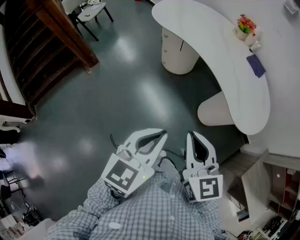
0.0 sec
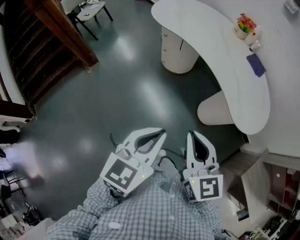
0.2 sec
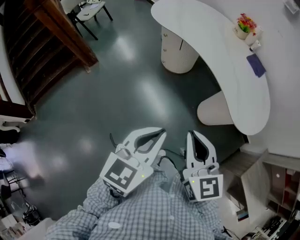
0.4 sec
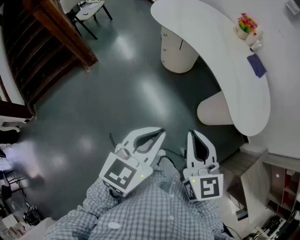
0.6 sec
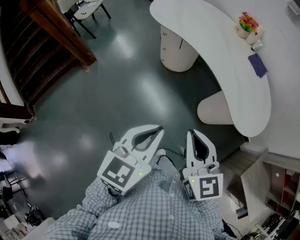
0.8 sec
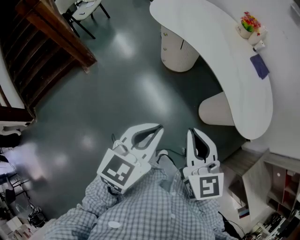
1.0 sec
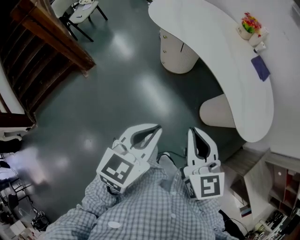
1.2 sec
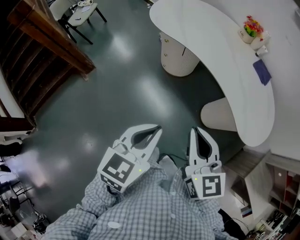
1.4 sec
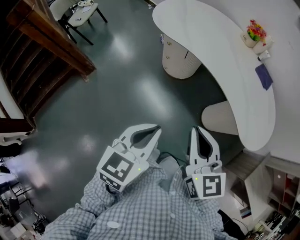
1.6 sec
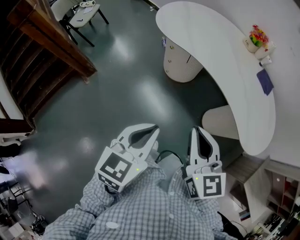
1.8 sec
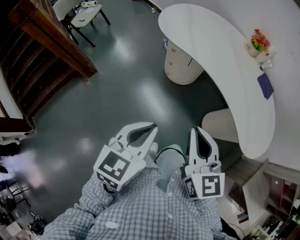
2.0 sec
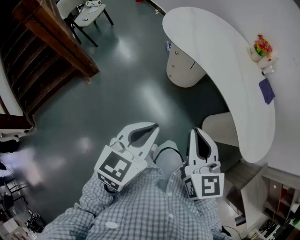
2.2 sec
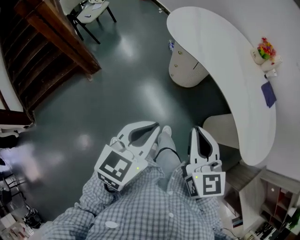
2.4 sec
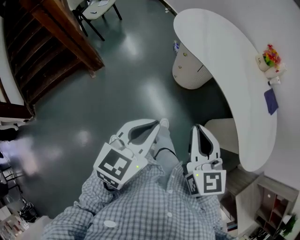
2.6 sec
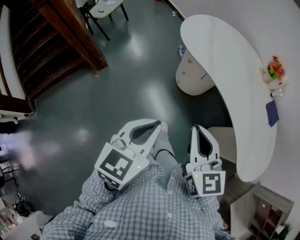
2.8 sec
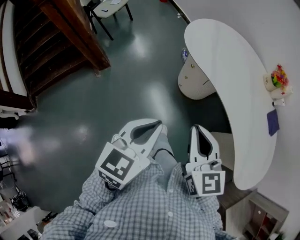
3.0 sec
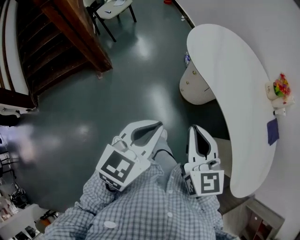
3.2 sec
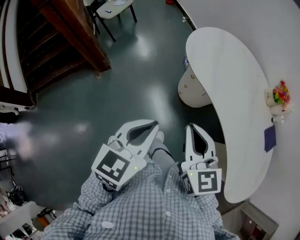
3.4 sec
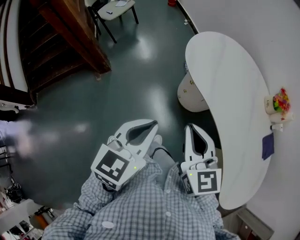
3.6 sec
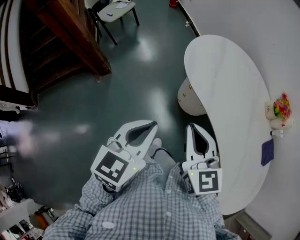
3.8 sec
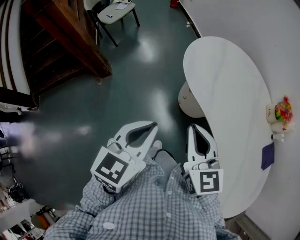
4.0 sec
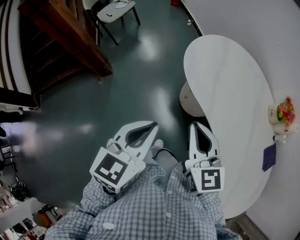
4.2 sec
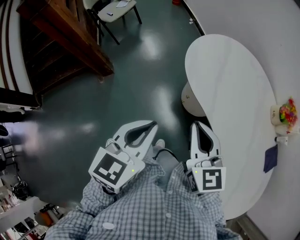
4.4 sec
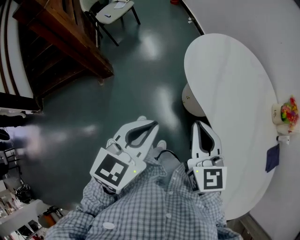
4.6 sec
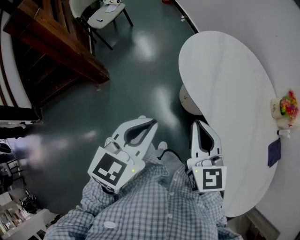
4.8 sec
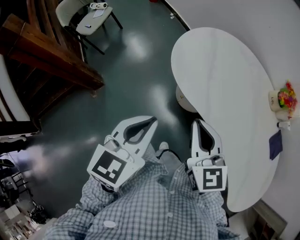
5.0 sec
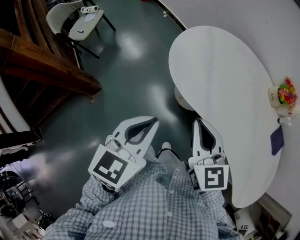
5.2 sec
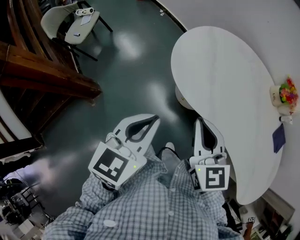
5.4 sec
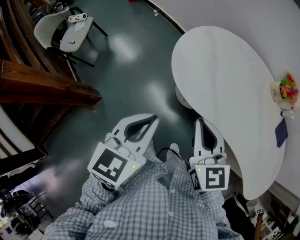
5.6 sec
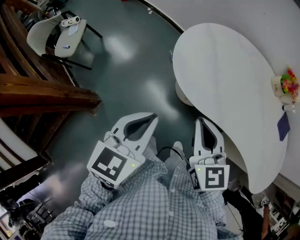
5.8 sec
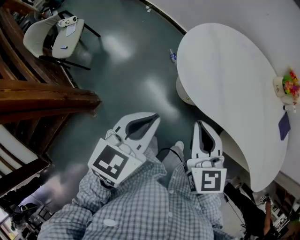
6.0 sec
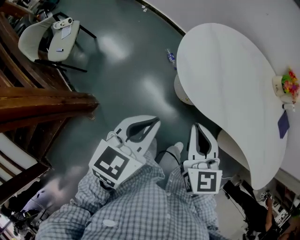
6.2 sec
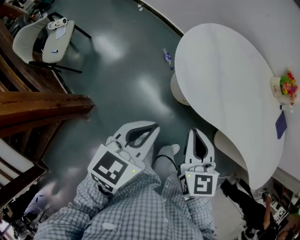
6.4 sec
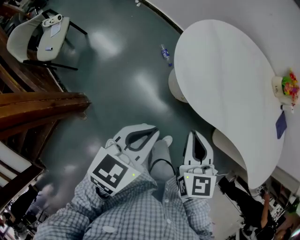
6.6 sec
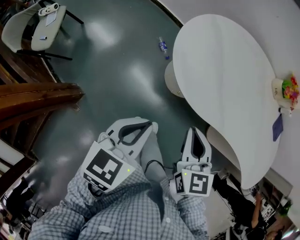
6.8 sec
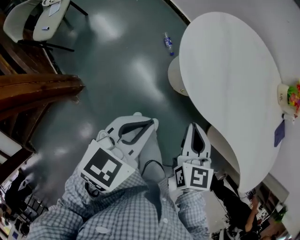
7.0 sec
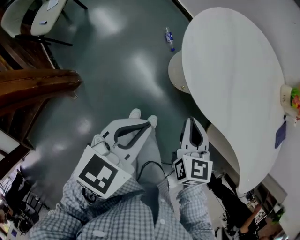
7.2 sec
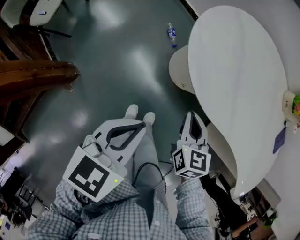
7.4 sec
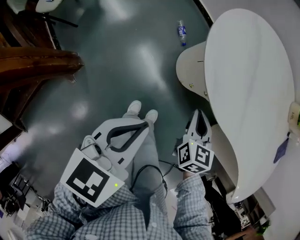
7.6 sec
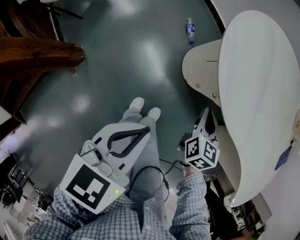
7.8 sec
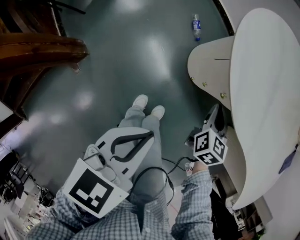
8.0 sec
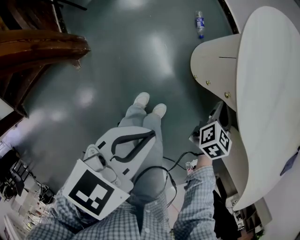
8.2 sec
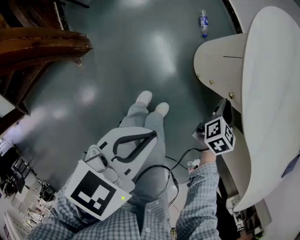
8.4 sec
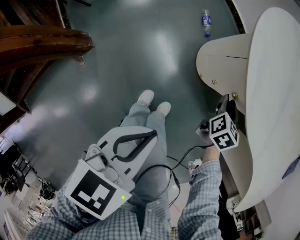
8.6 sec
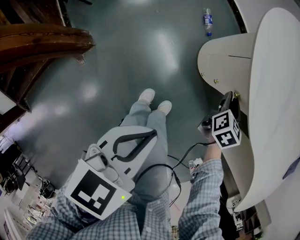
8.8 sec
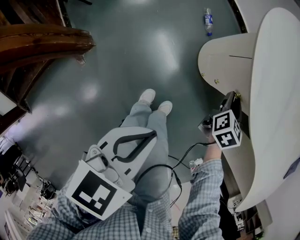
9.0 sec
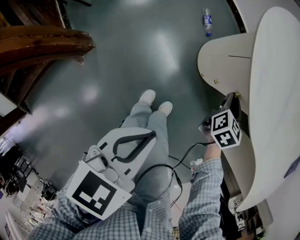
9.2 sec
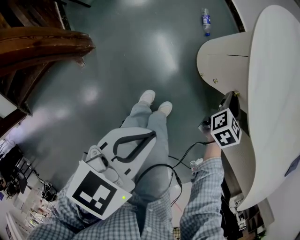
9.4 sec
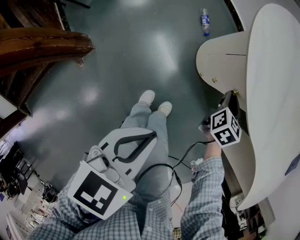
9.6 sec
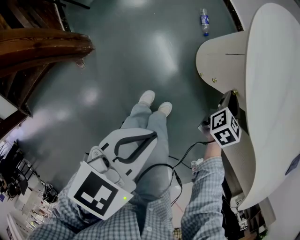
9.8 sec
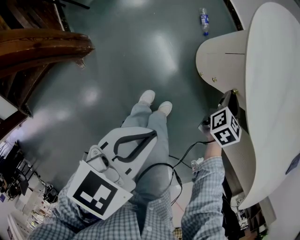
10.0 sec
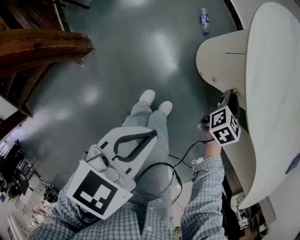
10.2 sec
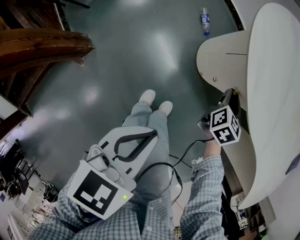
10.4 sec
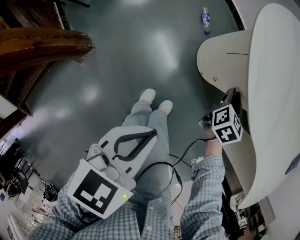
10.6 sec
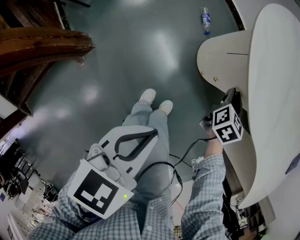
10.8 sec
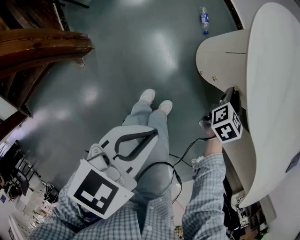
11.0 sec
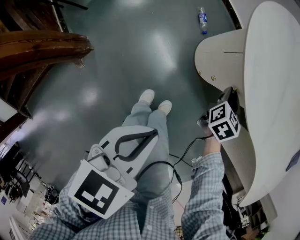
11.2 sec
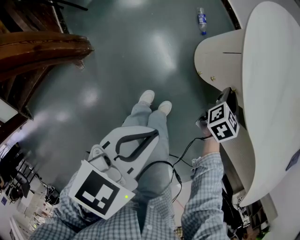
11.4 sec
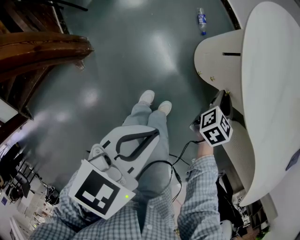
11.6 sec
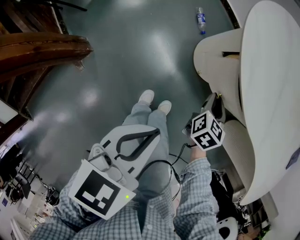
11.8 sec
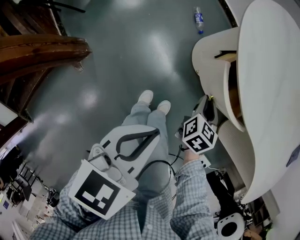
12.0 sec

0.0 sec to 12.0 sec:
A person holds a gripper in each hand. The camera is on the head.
0.0 sec to 1.6 sec: Both grippers travel together forward and to the left, some 15 cm.
1.6 sec to 3.0 sec: Both grippers travel together forward and to the left, approximately 15 cm.
3.0 sec to 4.4 sec: The grippers both shift forward by roughly 20 cm.
4.4 sec to 6.0 sec: The left gripper moves roughly 25 cm, and rotates about 30 degrees; the right gripper moves roughly 15 cm, and turns by about 30 degrees.
6.0 sec to 7.6 sec: The left gripper is displaced downward by about 15 cm, while the right gripper shifts some 25 cm downward, and turns by some 20 degrees.
7.6 sec to 9.0 sec: The right gripper goes about 15 cm downward and forward, and opens up, while the left gripper is displaced downward and backward by about 10 cm.
9.0 sec to 10.4 sec: The two grippers keep their place.
10.4 sec to 12.0 sec: The right gripper is displaced backward by roughly 10 cm.

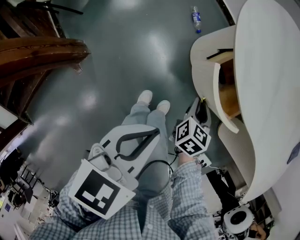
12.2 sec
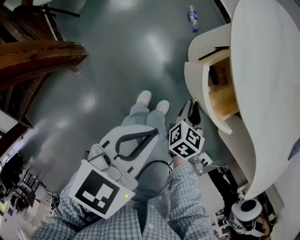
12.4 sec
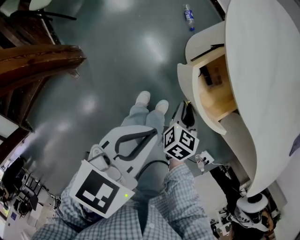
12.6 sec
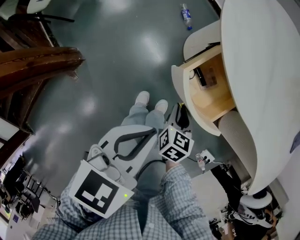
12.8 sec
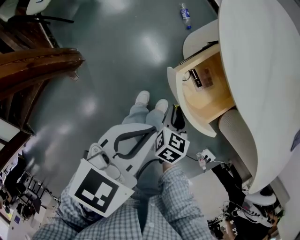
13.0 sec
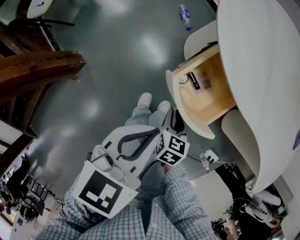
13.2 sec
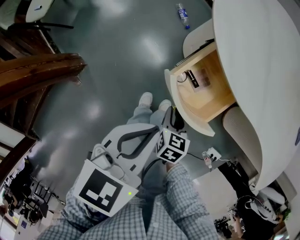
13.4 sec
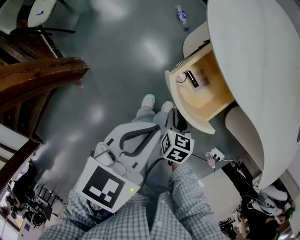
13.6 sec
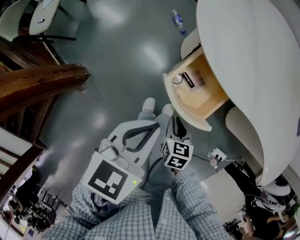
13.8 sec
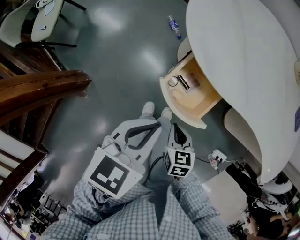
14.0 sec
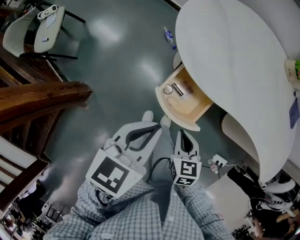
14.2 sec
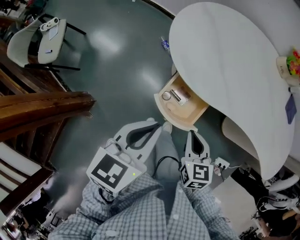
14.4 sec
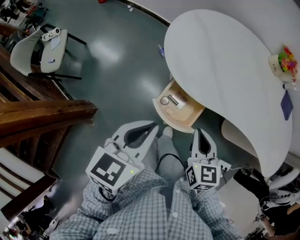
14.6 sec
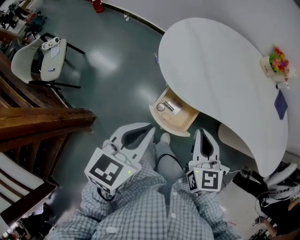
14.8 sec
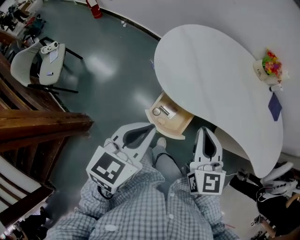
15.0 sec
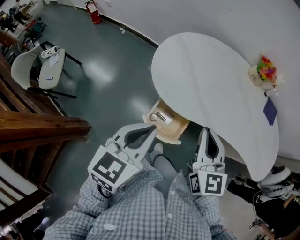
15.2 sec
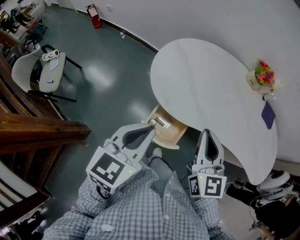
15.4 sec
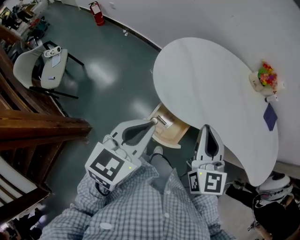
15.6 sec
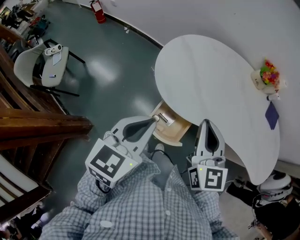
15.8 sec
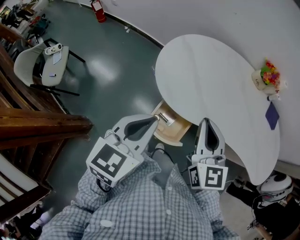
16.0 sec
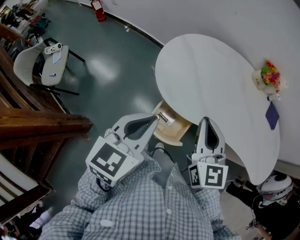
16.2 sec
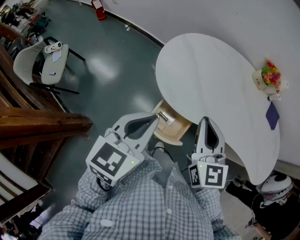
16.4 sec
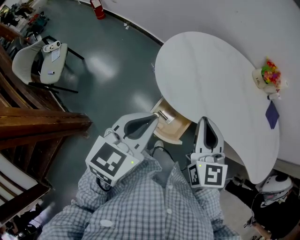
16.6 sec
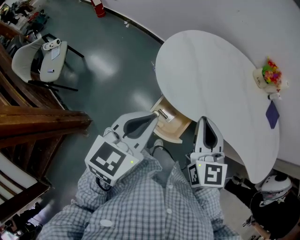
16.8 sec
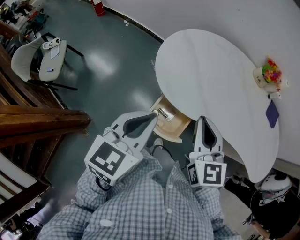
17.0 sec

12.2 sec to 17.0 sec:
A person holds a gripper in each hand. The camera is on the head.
12.2 sec to 13.8 sec: The right gripper moves backward, about 15 cm.
13.8 sec to 15.4 sec: The right gripper moves upward, approximately 40 cm, and tilts its fingers approximately 40 degrees upward. Meanwhile the left gripper moves upward, about 20 cm.
15.4 sec to 17.0 sec: The grippers stay close to where they were, moving slightly.

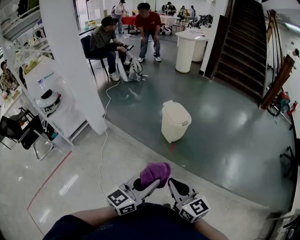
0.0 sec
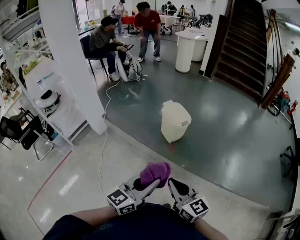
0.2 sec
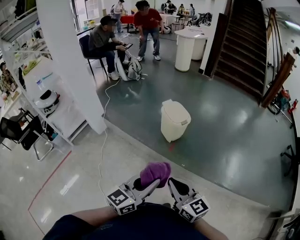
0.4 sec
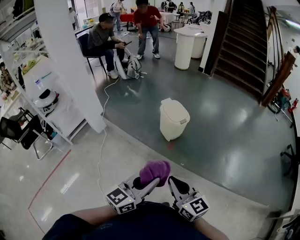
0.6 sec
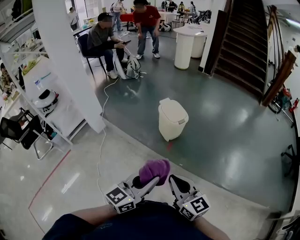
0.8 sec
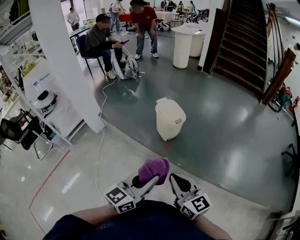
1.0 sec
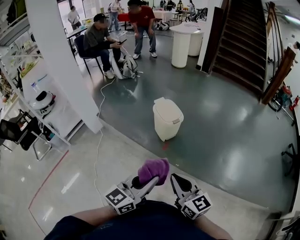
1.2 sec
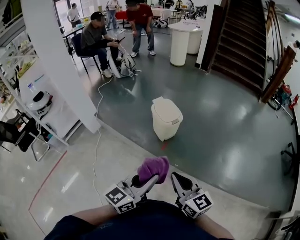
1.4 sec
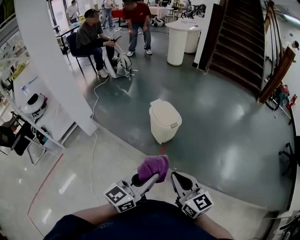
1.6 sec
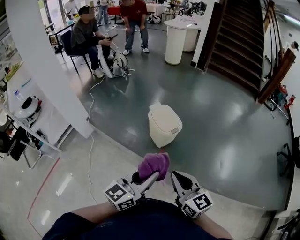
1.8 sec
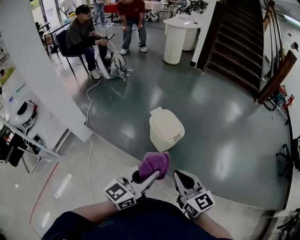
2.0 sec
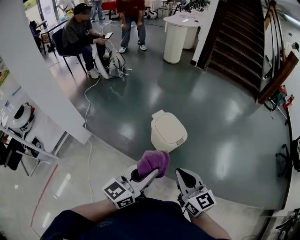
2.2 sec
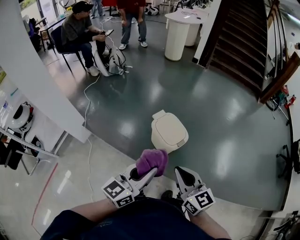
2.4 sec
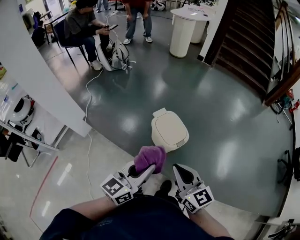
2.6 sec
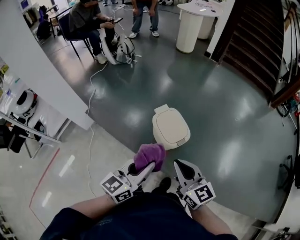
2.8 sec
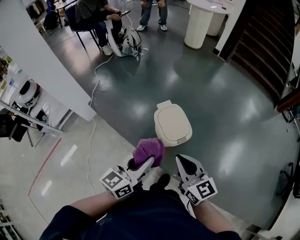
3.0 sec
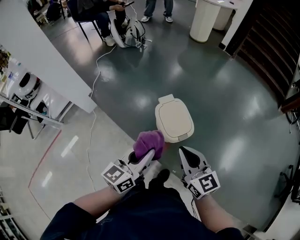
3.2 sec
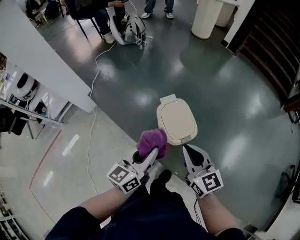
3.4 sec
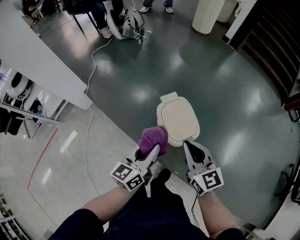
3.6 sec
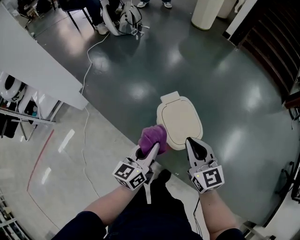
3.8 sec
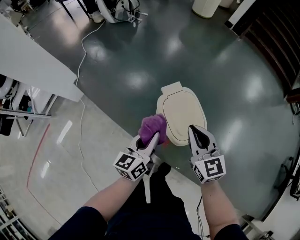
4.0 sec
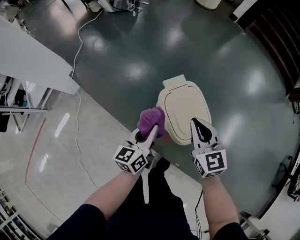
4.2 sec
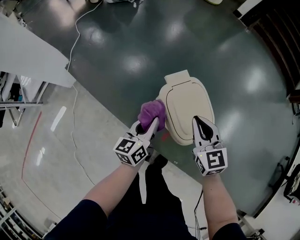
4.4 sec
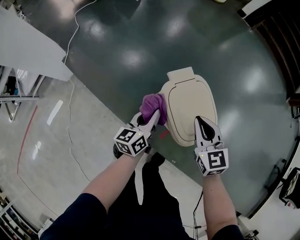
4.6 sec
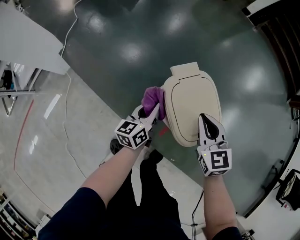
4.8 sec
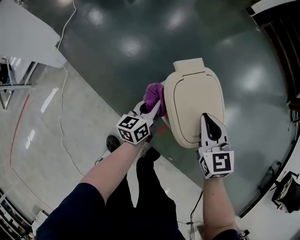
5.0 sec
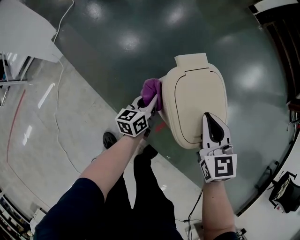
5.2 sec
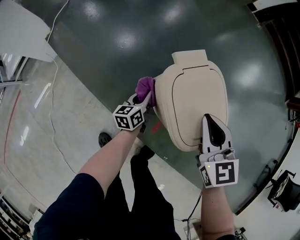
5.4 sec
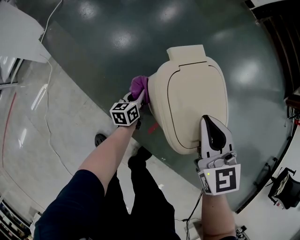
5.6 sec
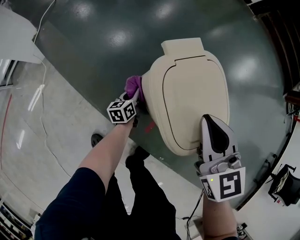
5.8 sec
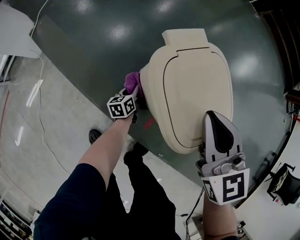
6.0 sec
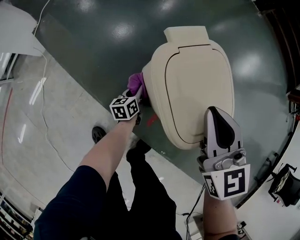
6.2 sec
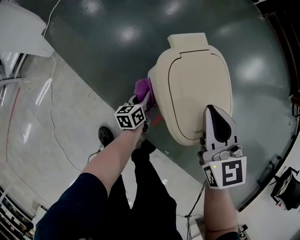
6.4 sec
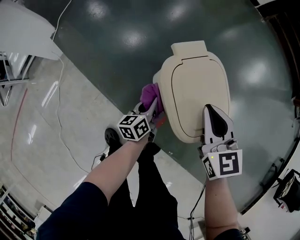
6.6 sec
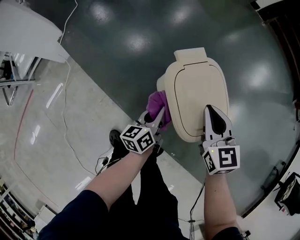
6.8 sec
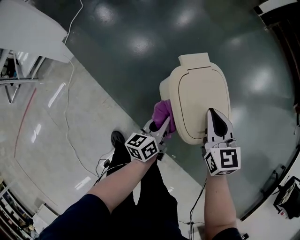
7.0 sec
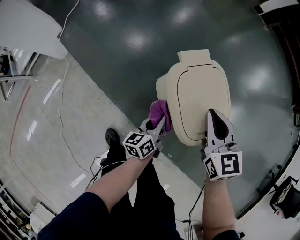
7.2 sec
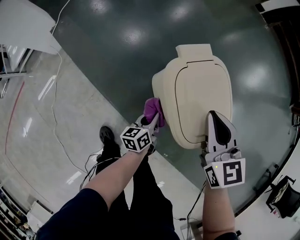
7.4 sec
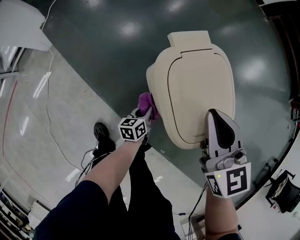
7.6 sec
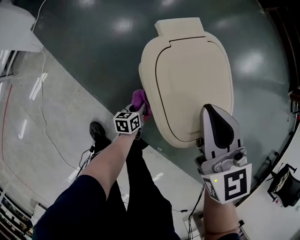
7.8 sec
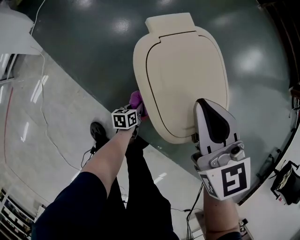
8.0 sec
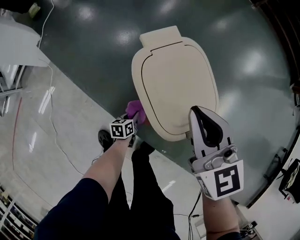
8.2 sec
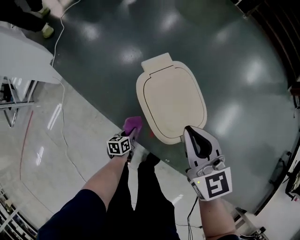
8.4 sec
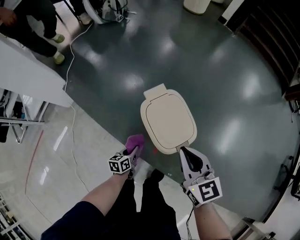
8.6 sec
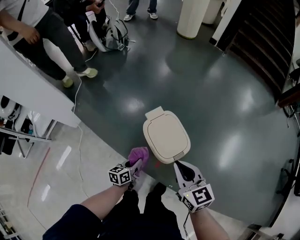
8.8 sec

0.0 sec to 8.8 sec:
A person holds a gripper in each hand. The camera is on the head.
0.0 sec to 1.4 sec: Both grippers travel together to the right and forward, roughly 15 cm.
1.4 sec to 3.0 sec: Both grippers travel together forward, approximately 35 cm.
3.0 sec to 4.4 sec: Both grippers travel together downward and forward, about 35 cm. The right gripper rotates approximately 20 degrees, while the left gripper changes its angle by about 20 degrees.
4.4 sec to 5.8 sec: The right gripper heads downward, covering approximately 5 cm; the left gripper shifts approximately 35 cm downward.
5.8 sec to 7.4 sec: The left gripper is displaced upward and backward by approximately 15 cm.
7.4 sec to 8.8 sec: The left gripper moves upward, about 20 cm, and changes its angle by roughly 20 degrees; the right gripper is displaced upward and backward by approximately 20 cm.
